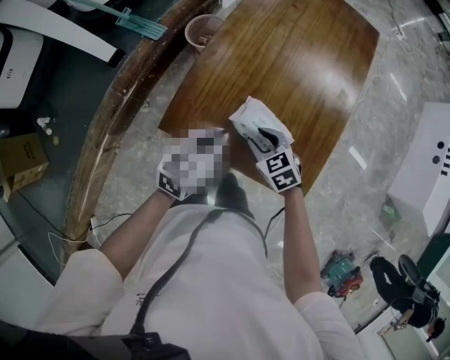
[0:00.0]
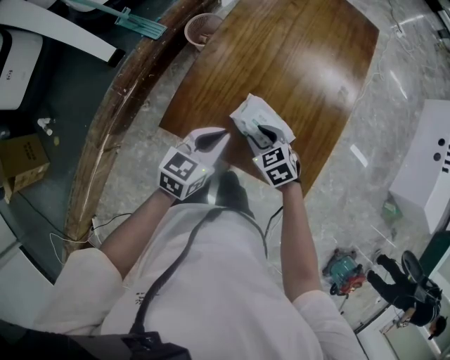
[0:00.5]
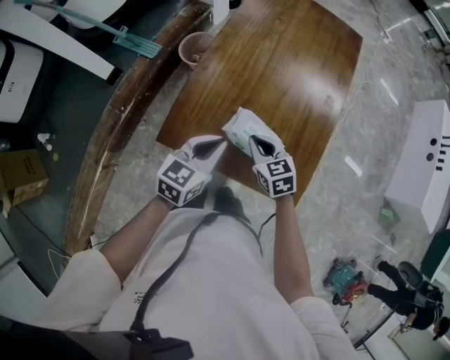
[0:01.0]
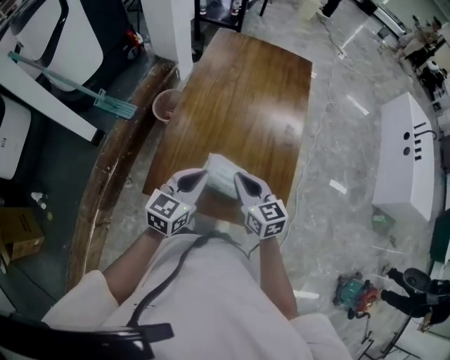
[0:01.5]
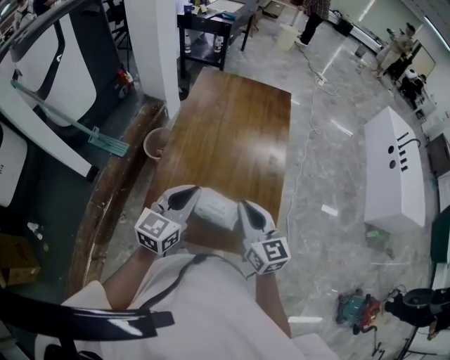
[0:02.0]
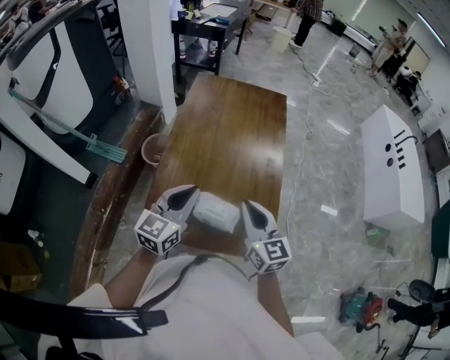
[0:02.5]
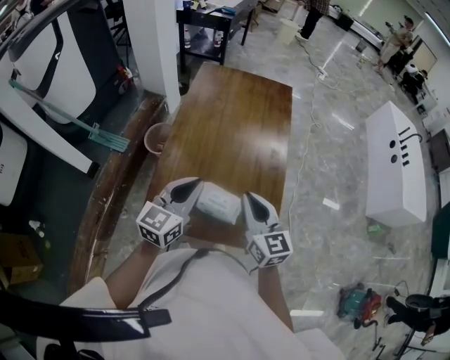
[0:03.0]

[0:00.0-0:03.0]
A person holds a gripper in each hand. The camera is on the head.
0:00.0 to 0:01.5: The left gripper shifts some 10 cm upward; the right gripper shifts some 15 cm upward, turns by about 40 degrees, and closes.
0:01.5 to 0:03.0: The two grippers go approximately 10 cm upward.

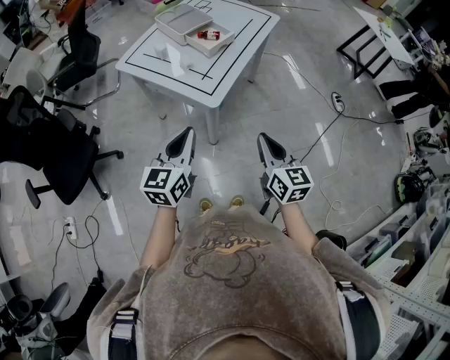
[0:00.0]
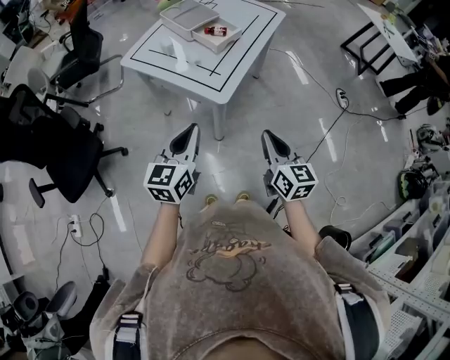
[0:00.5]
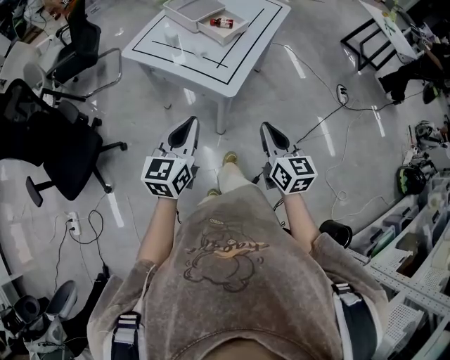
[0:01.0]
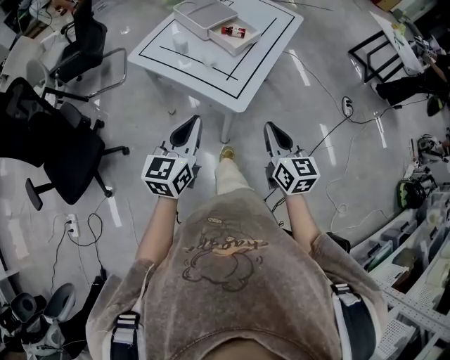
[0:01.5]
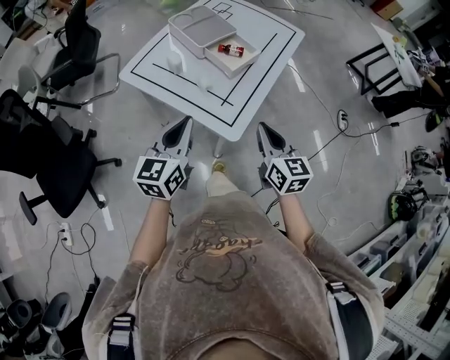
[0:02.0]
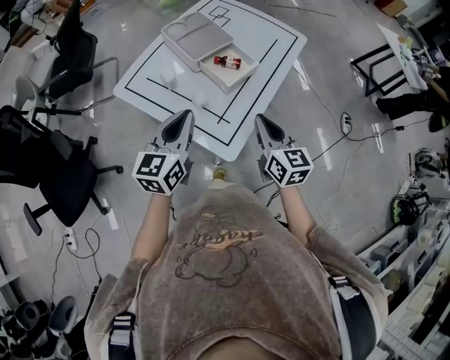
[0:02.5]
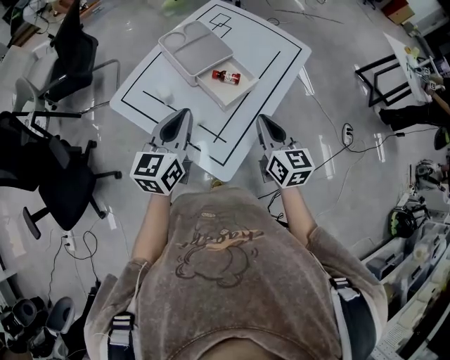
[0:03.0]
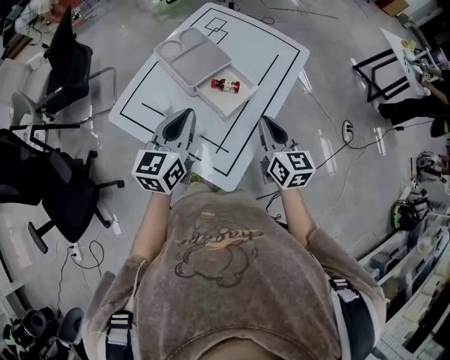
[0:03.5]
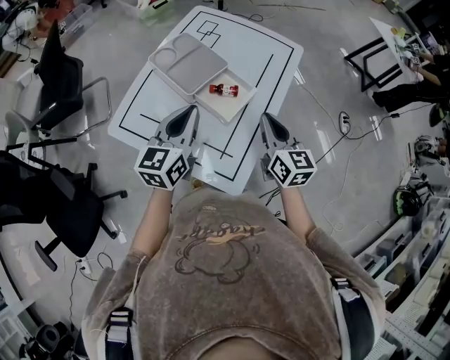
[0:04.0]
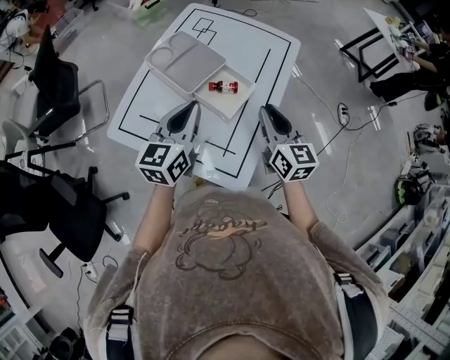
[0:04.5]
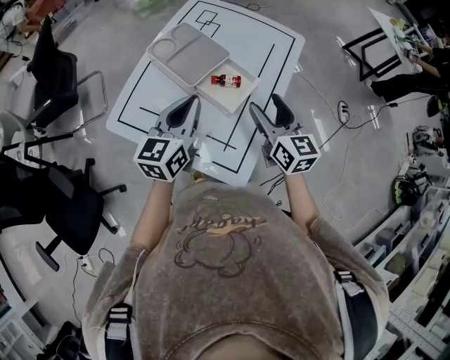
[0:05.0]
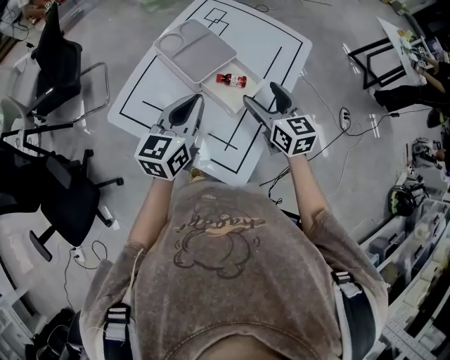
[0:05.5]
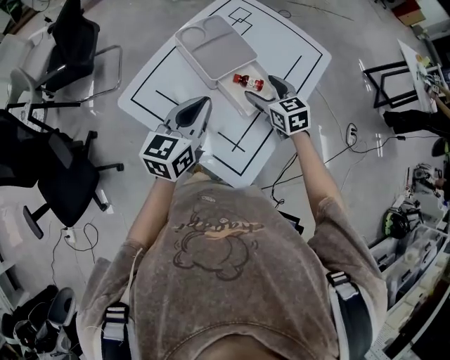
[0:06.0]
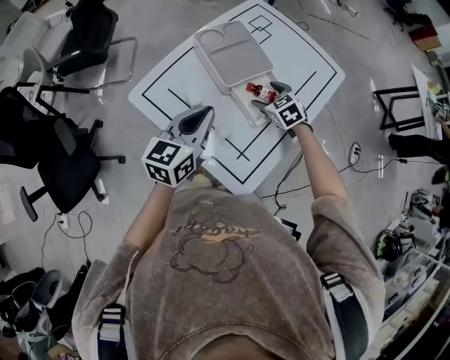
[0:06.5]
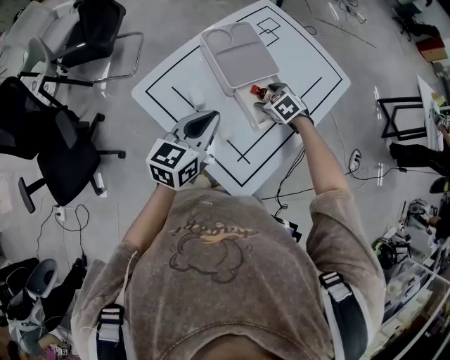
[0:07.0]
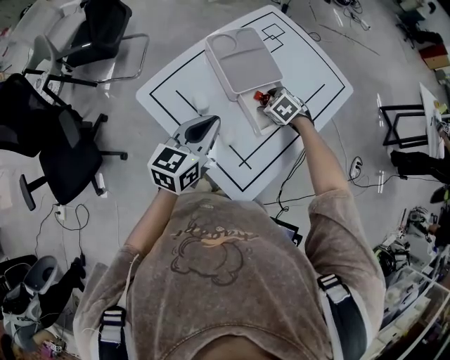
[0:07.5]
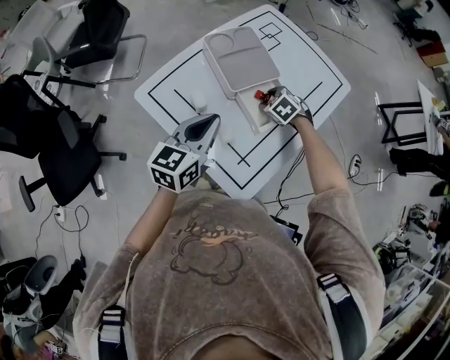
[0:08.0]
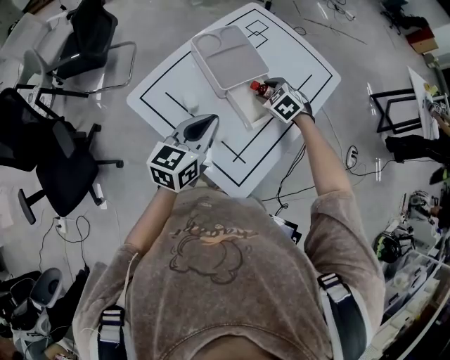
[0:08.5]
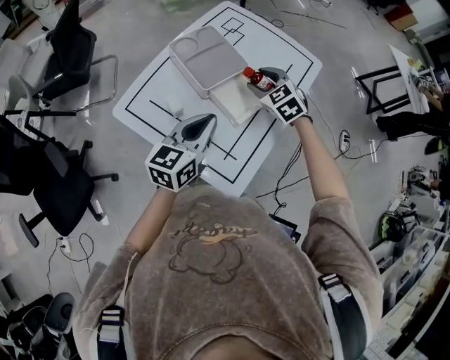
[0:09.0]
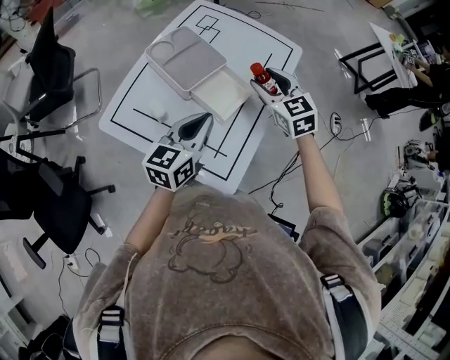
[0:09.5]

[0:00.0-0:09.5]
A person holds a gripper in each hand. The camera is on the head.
0:00.0 to 0:02.0: The grippers both shift forward and to the left by roughly 20 cm.
0:02.0 to 0:04.0: Both grippers travel together forward, some 25 cm.
0:04.0 to 0:05.5: The right gripper is displaced forward by roughly 5 cm, and opens.
0:05.5 to 0:07.5: The right gripper travels downward and forward by roughly 20 cm, and tilts its fingers some 50 degrees downward; the left gripper shifts by about 5 cm.
0:07.5 to 0:09.5: The right gripper is displaced upward by some 20 cm, and tilts its fingers roughly 40 degrees upward; the left gripper goes some 10 cm to the right.

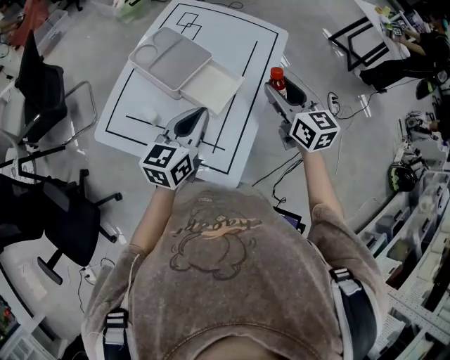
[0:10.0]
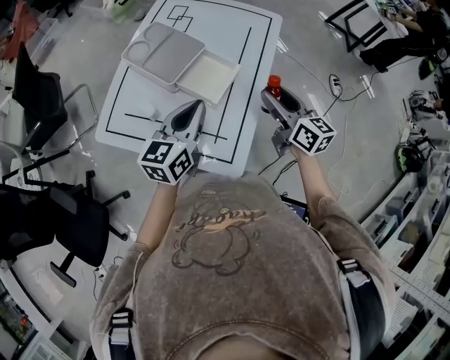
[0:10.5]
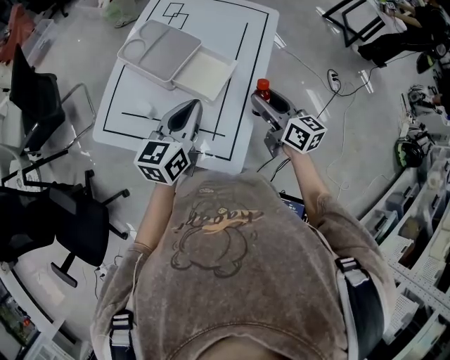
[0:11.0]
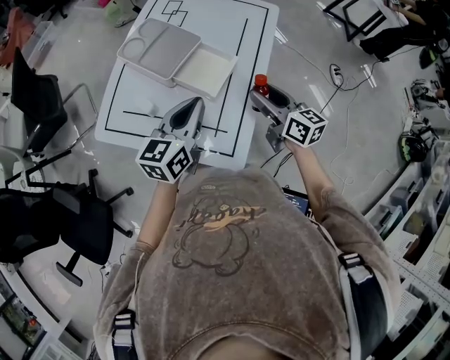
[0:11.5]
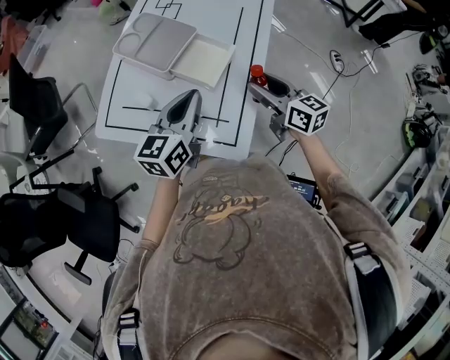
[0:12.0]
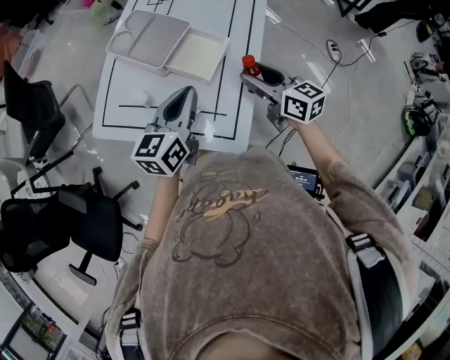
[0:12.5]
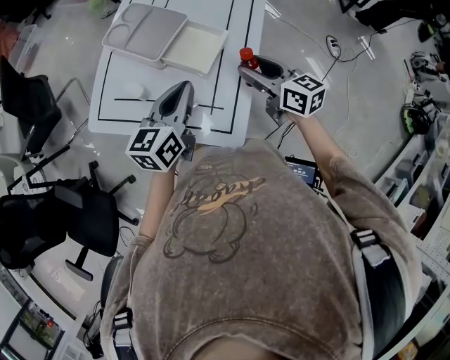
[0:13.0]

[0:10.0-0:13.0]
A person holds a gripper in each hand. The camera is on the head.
0:10.0 to 0:11.5: The right gripper goes some 10 cm downward and backward, and turns by some 20 degrees.
0:11.5 to 0:13.0: There are only small adjustments of the grippers.

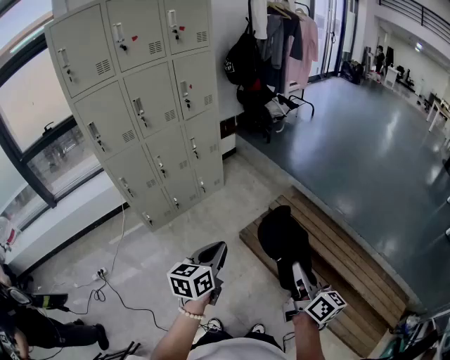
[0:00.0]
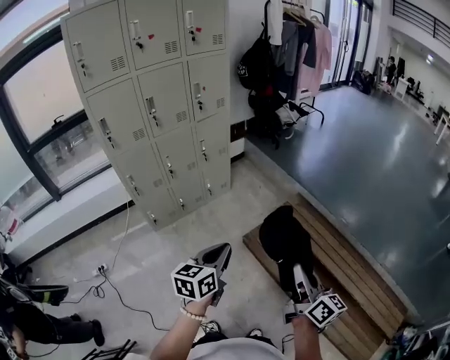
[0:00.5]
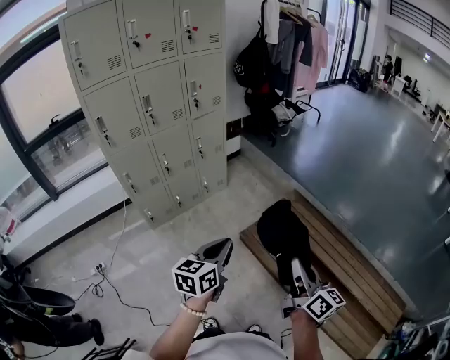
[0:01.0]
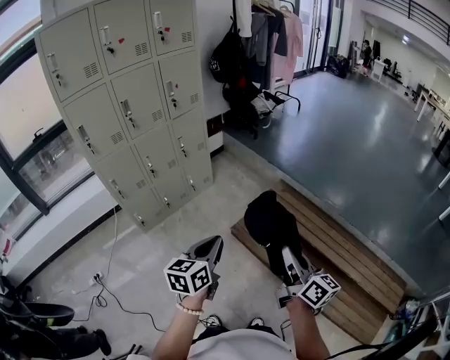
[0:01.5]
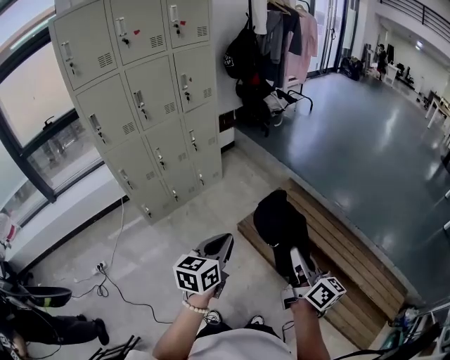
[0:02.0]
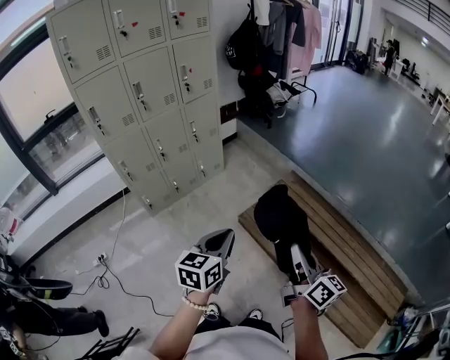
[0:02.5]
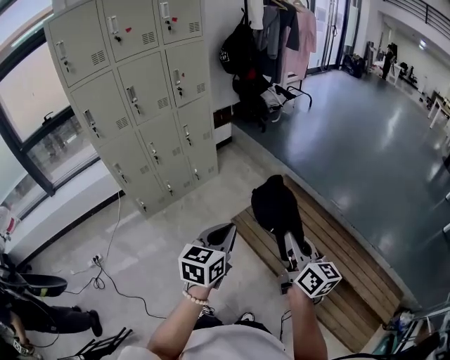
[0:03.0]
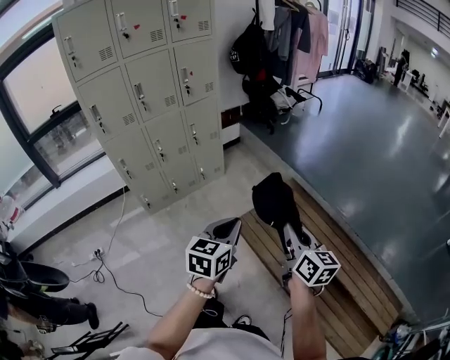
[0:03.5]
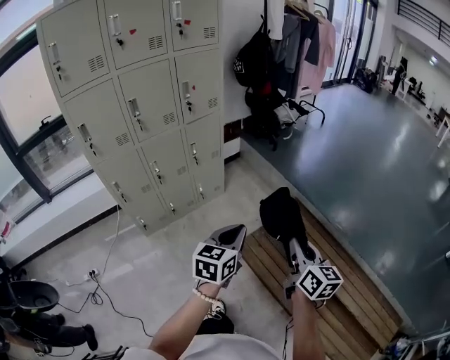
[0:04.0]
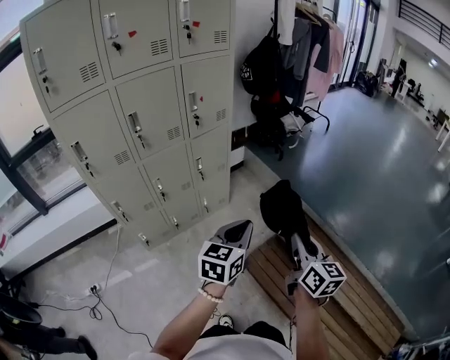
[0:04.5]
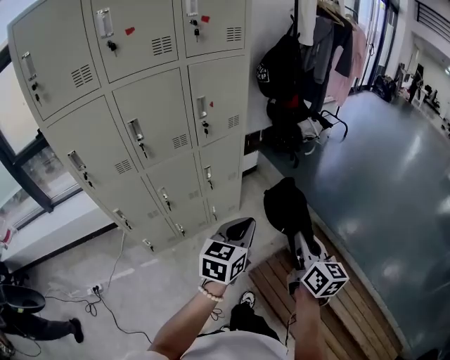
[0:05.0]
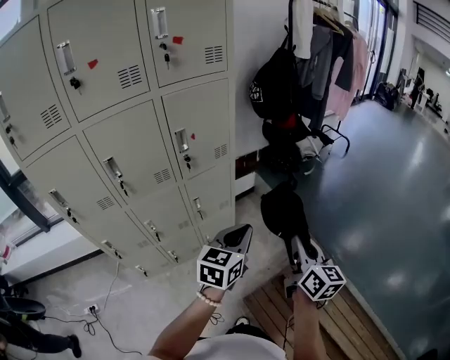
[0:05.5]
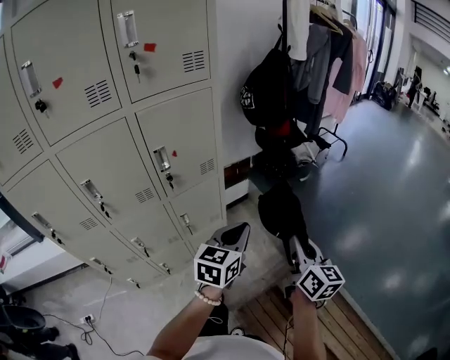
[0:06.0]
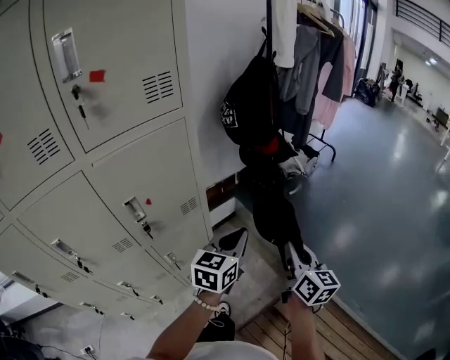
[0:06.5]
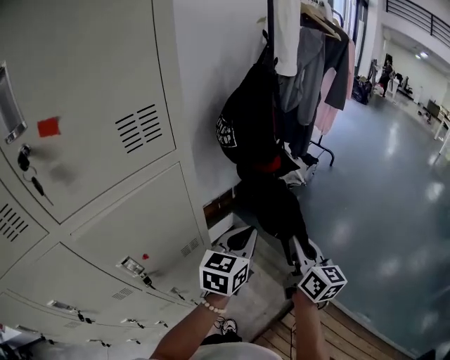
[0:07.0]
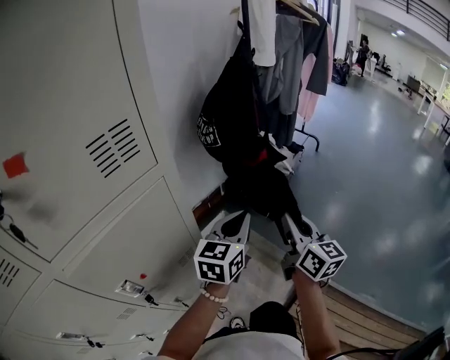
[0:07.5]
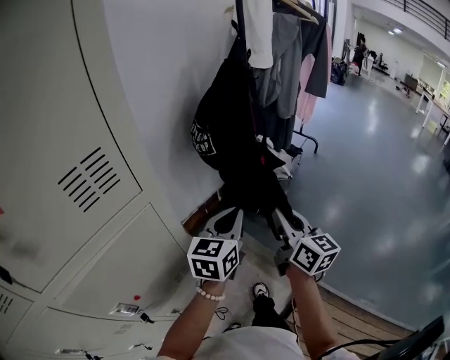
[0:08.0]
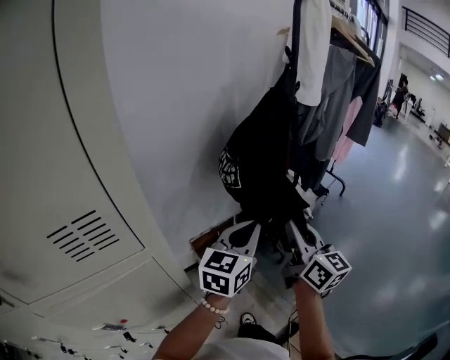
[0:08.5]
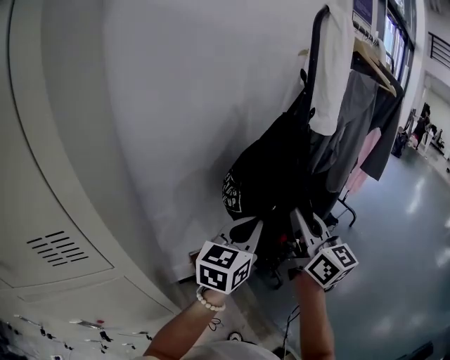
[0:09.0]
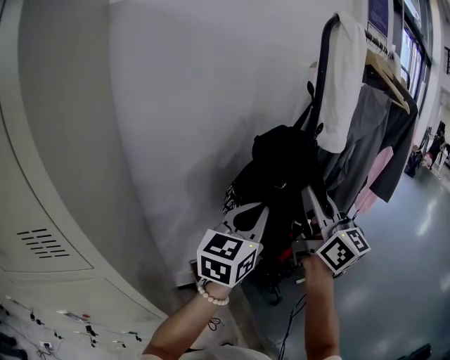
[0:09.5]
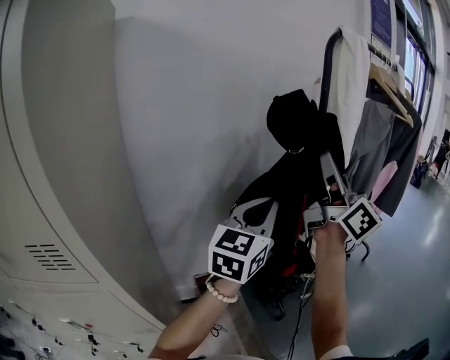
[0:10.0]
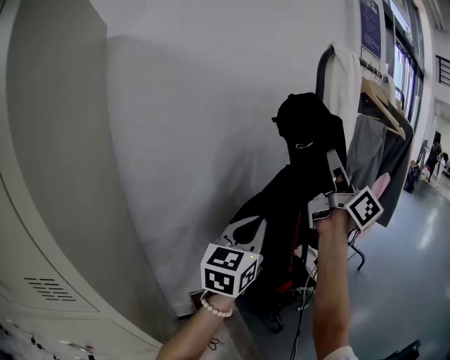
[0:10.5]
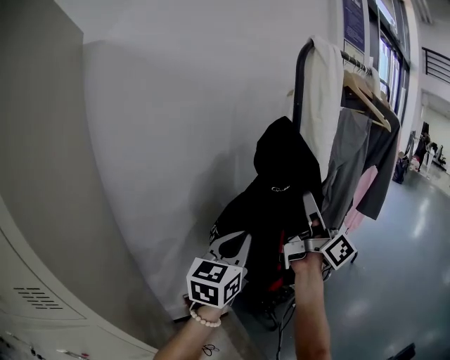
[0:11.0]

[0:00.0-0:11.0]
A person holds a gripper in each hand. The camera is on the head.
0:00.0 to 0:02.0: The grippers stay close to where they were, moving slightly.
0:02.0 to 0:03.5: The right gripper shifts roughly 10 cm forward and to the right; the left gripper goes about 10 cm to the right.
0:03.5 to 0:05.5: The pair of grippers is taken forward, approximately 60 cm.
0:05.5 to 0:07.5: The two grippers travel together, forward, some 50 cm.
0:07.5 to 0:09.0: Both grippers move forward and upward, approximately 30 cm. The right gripper changes its angle by roughly 30 degrees.
0:09.0 to 0:11.0: The right gripper travels forward, upward and to the right by about 20 cm, and rotates roughly 40 degrees; the left gripper goes some 10 cm forward and upward.
